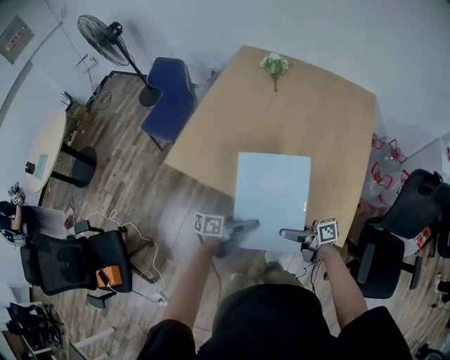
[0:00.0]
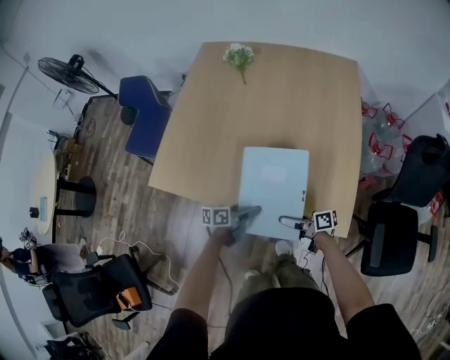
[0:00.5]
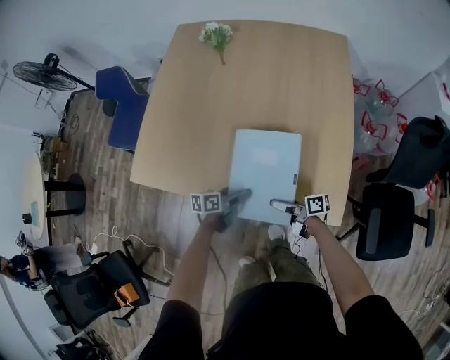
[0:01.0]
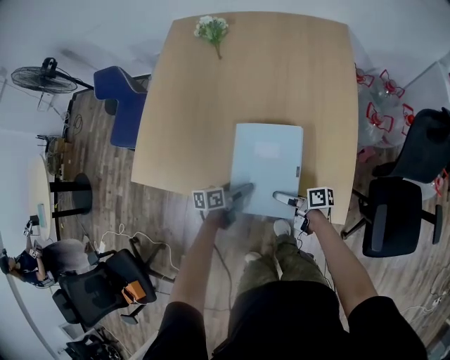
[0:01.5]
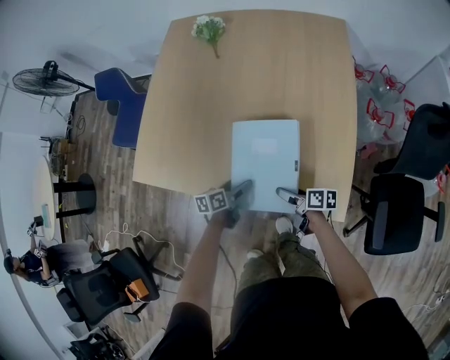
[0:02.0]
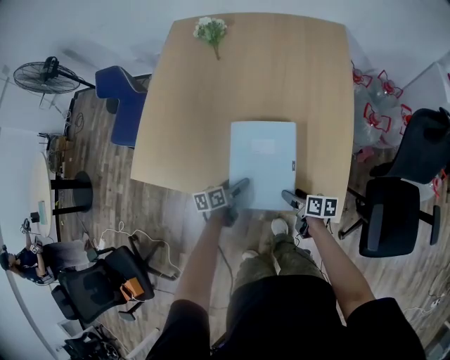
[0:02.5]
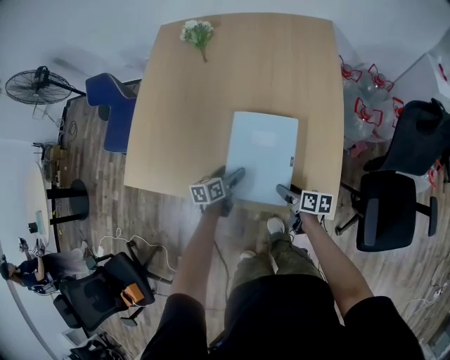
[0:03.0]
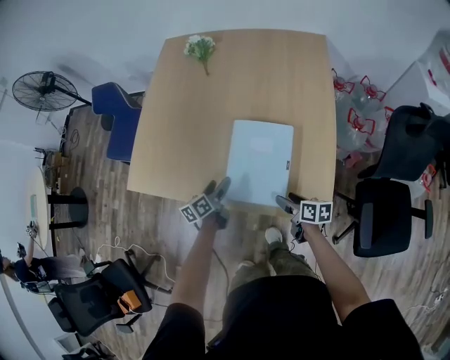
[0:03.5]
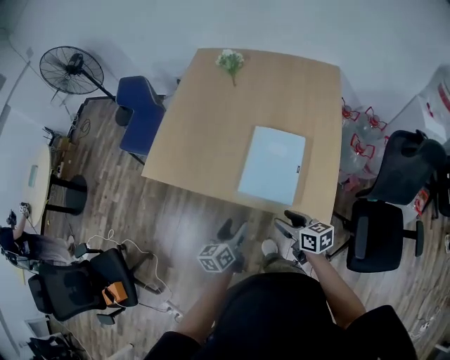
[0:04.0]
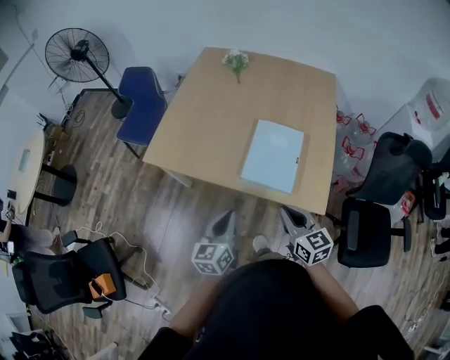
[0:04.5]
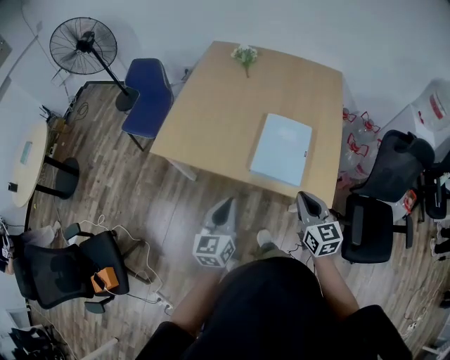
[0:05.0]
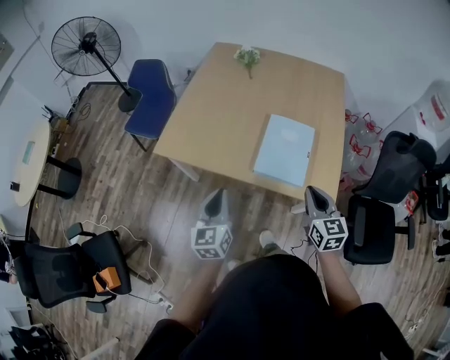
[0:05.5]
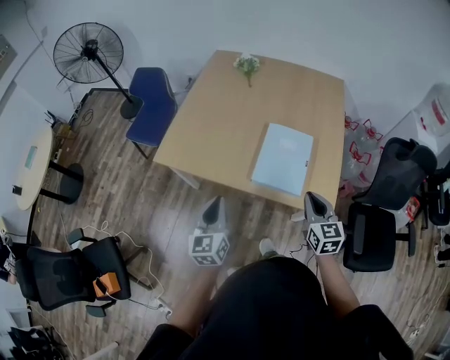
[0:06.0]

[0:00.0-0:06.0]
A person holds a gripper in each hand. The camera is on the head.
0:00.0 to 0:02.0: The right gripper shifts by approximately 30 cm, and swivels about 40 degrees; the left gripper ends up about 30 cm from where it was, and rotates approximately 20 degrees.
0:02.0 to 0:04.0: The right gripper heads upward and backward, covering approximately 25 cm, swivels approximately 40 degrees, and closes its fingers. The left gripper moves backward and upward, about 25 cm, and swivels some 30 degrees.
0:04.0 to 0:06.0: The right gripper is displaced upward by some 15 cm, swivels approximately 40 degrees, and closes up. Meanwhile the left gripper shifts roughly 20 cm upward and to the left, turns by roughly 30 degrees, and closes its fingers.

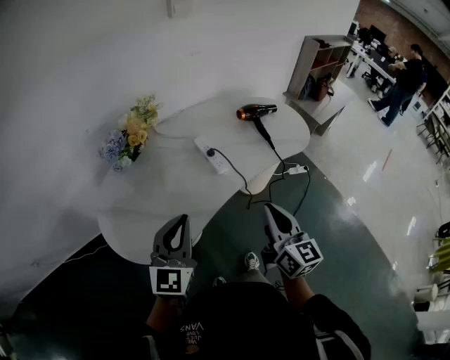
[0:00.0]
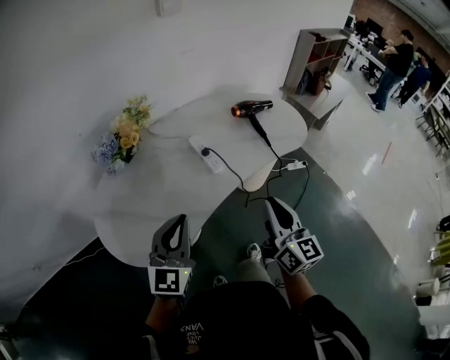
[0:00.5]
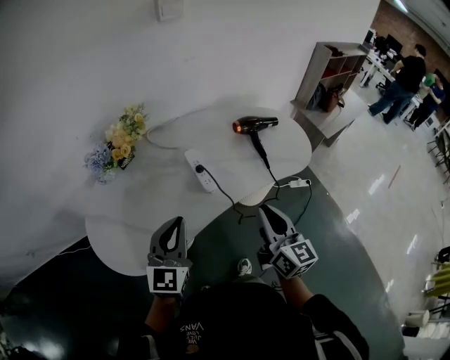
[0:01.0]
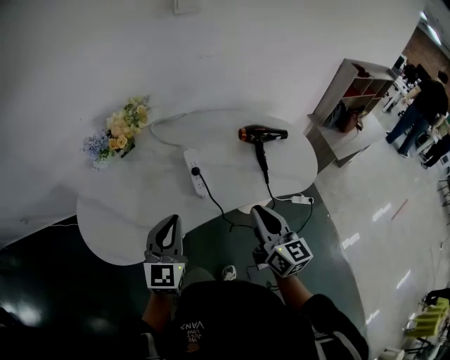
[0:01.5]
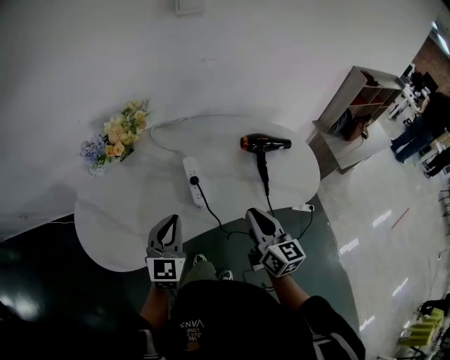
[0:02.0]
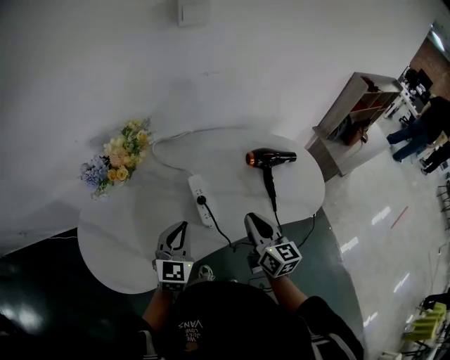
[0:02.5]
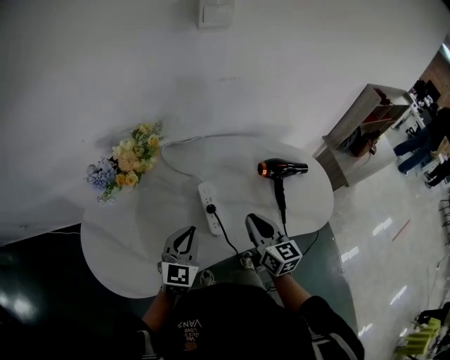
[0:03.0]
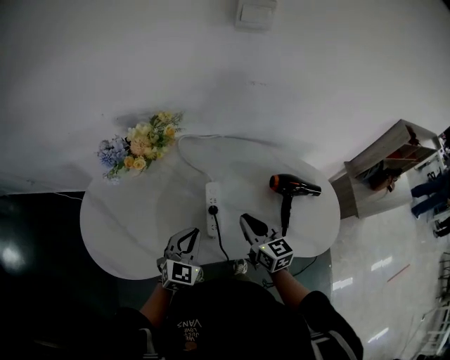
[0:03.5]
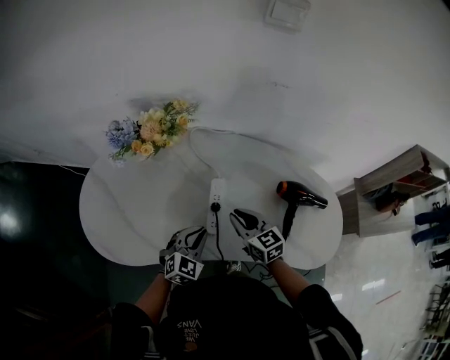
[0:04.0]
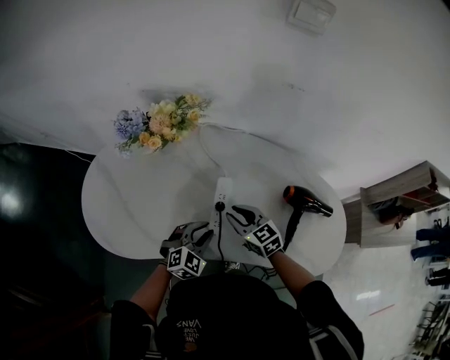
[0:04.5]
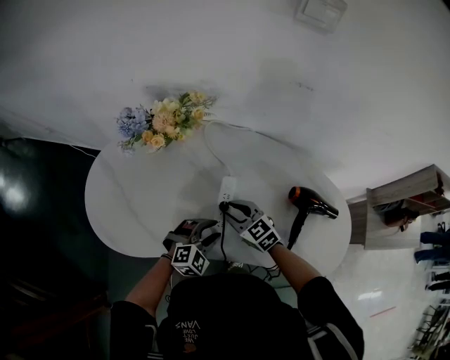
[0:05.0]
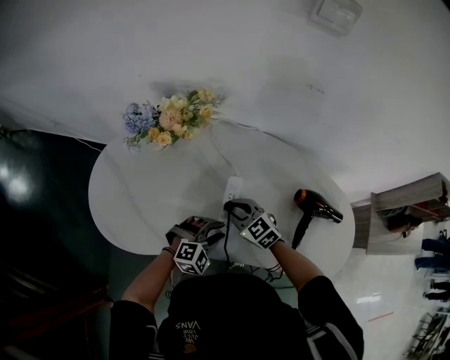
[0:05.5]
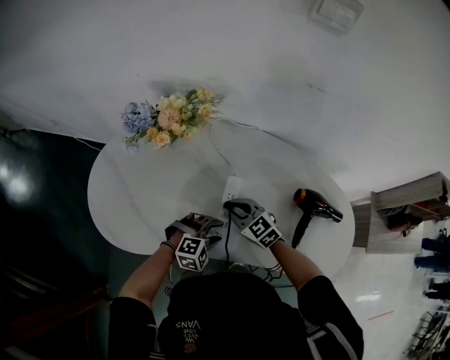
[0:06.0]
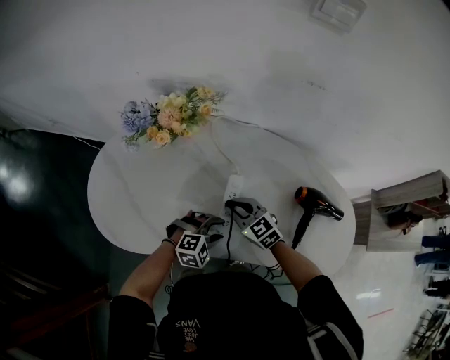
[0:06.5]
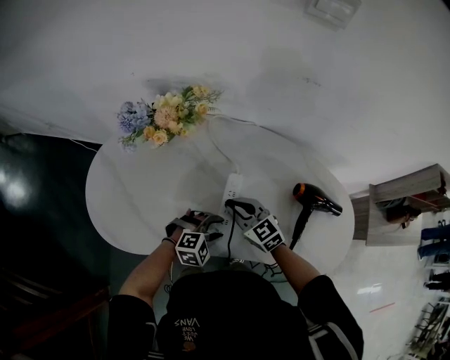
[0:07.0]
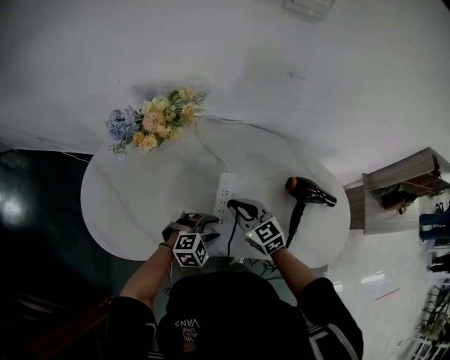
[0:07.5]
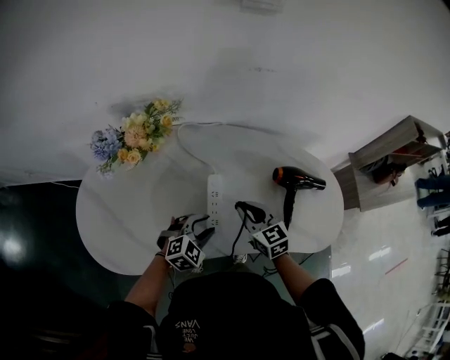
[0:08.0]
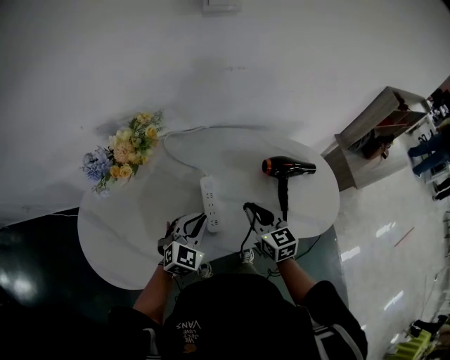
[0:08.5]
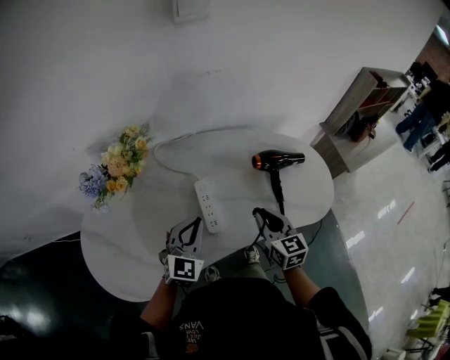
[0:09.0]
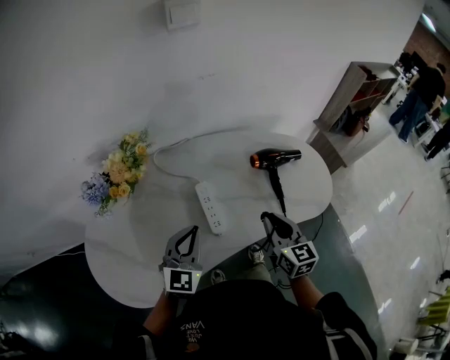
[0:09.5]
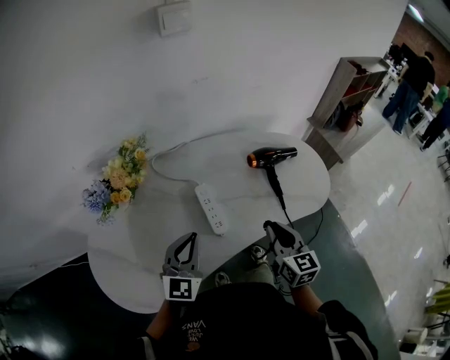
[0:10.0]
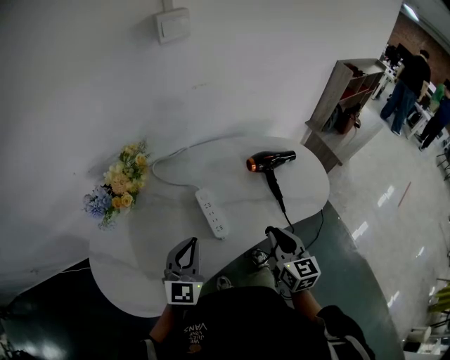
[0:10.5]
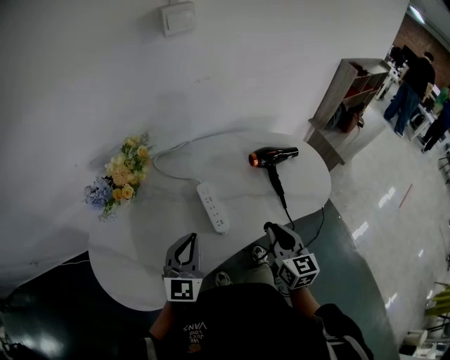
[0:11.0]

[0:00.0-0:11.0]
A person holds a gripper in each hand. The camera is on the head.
0:00.0 to 0:02.0: The left gripper heads forward, to the right and downward, covering approximately 25 cm, and changes its angle by approximately 20 degrees. The right gripper travels forward and to the right by about 25 cm, and rotates some 20 degrees.
0:02.0 to 0:03.5: The two grippers go approximately 15 cm forward and downward. The right gripper swivels some 20 degrees.
0:03.5 to 0:05.5: The left gripper shifts approximately 10 cm downward and to the right, swivels about 40 degrees, and opens, while the right gripper travels to the left, downward and forward by some 15 cm, and rotates approximately 50 degrees.
0:05.5 to 0:07.5: The right gripper moves approximately 5 cm.
0:07.5 to 0:09.0: The left gripper is displaced upward by about 15 cm, tilts its fingers some 30 degrees upward, and closes up, while the right gripper is displaced to the right, backward and upward by roughly 15 cm, and swivels some 50 degrees.
0:09.0 to 0:11.0: The two grippers go about 5 cm backward.

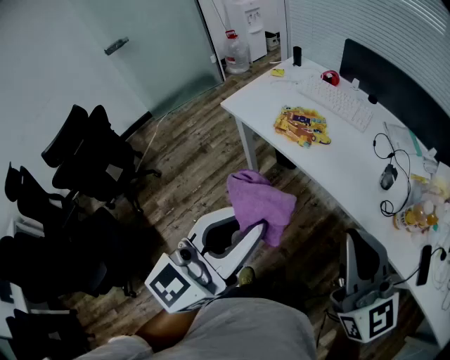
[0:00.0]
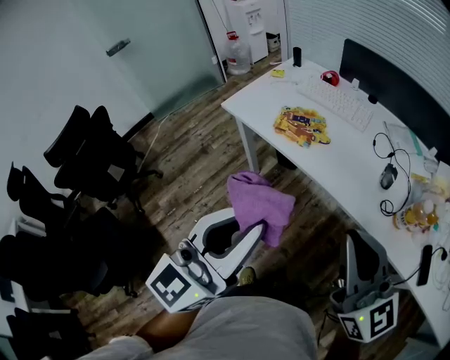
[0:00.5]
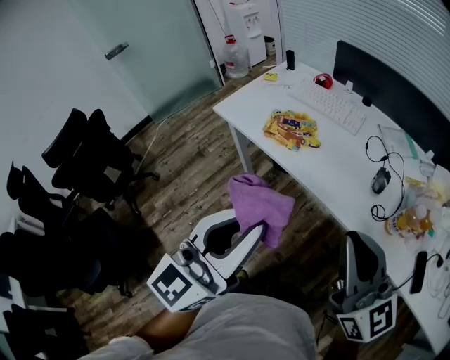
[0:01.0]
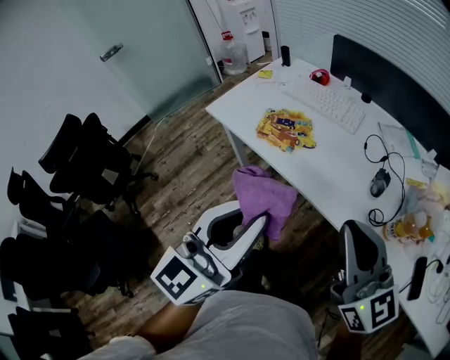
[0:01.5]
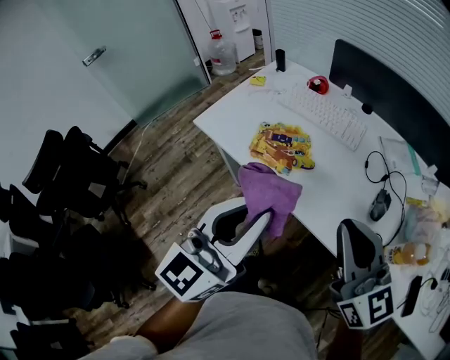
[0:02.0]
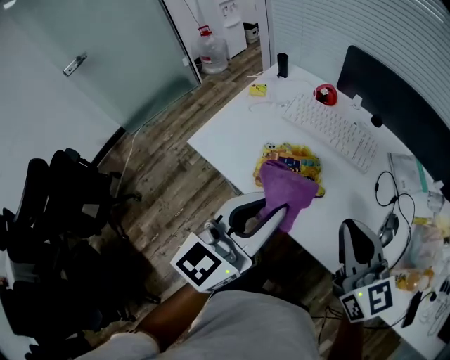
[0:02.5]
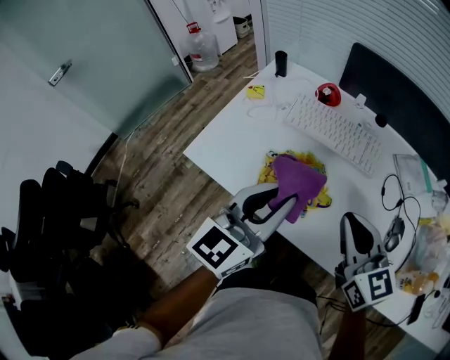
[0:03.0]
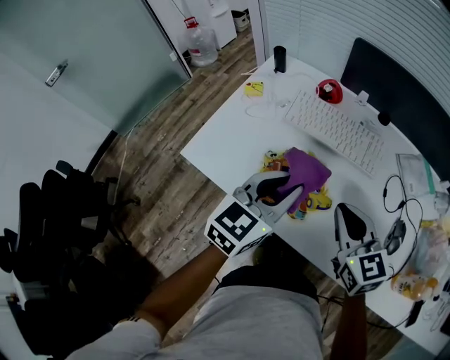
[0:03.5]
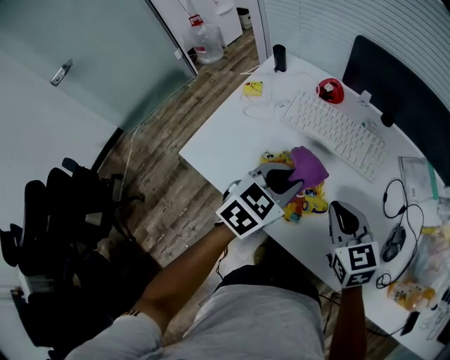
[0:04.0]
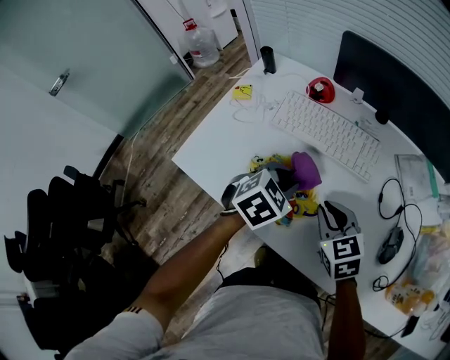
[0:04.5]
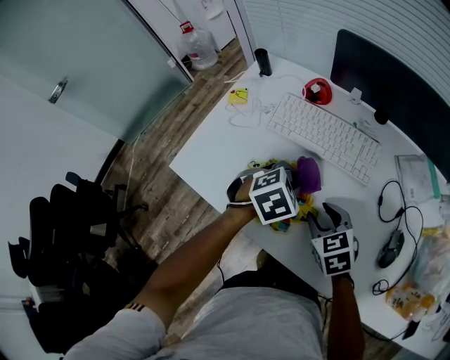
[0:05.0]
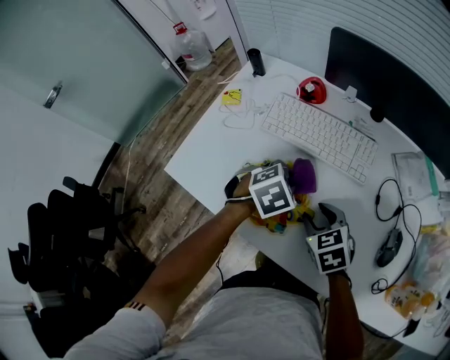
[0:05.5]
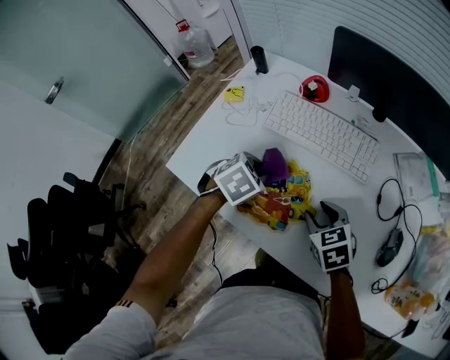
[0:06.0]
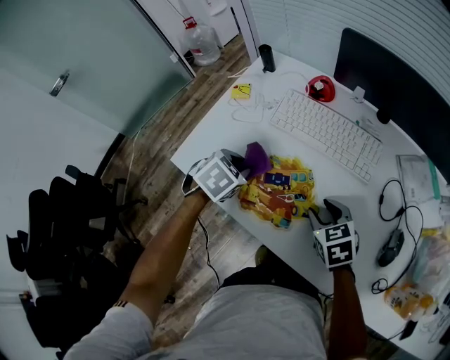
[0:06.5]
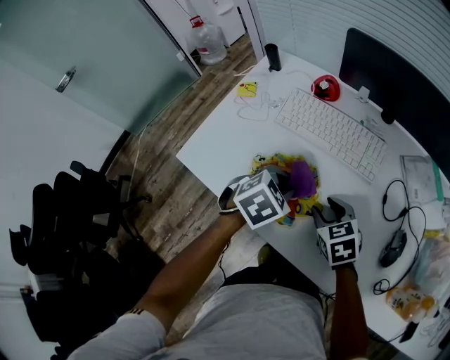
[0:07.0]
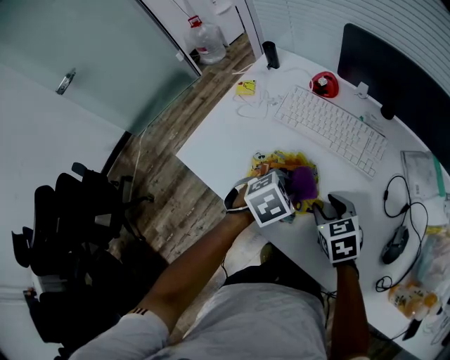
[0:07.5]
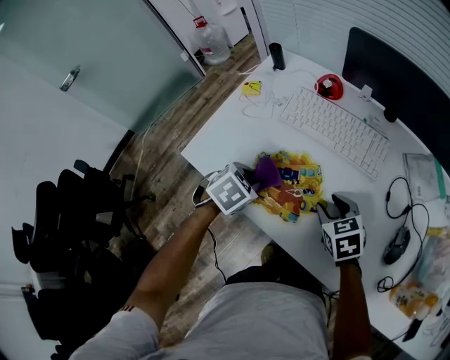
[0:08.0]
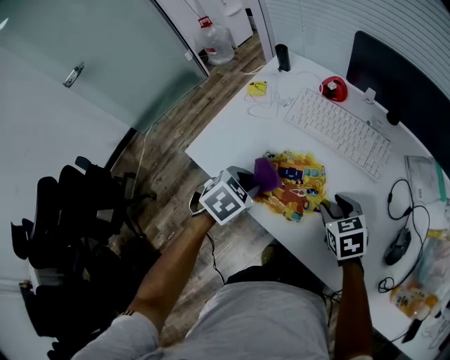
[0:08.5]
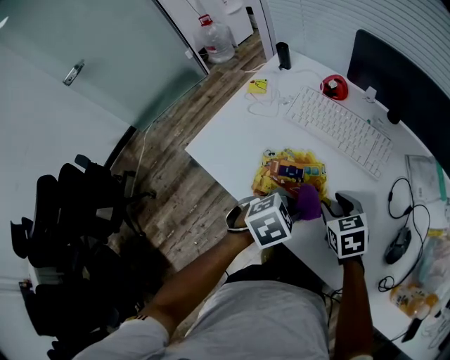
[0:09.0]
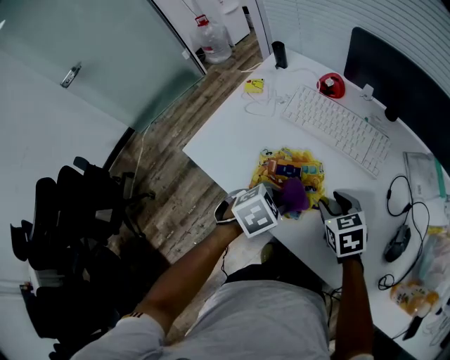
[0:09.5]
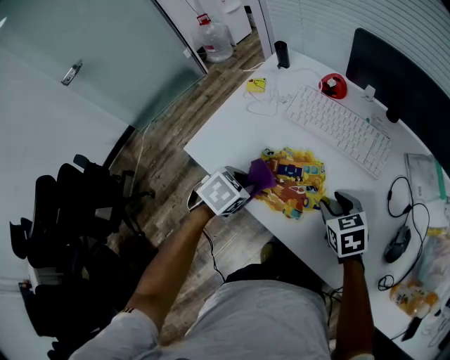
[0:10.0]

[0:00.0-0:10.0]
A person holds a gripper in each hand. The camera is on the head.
0:00.0 to 0:02.0: Both grippers travel together forward, approximately 15 cm.
0:02.0 to 0:04.0: The grippers both shift forward and downward by about 30 cm. The left gripper tilts its fingers some 40 degrees downward. Meanwhile the right gripper swivels roughly 30 degrees.
0:04.0 to 0:06.0: The left gripper heads downward and to the left, covering approximately 10 cm, and tips its fingers downward by approximately 30 degrees. The right gripper goes some 10 cm downward, changes its angle by approximately 20 degrees, and opens its fingers.
0:06.0 to 0:08.0: The left gripper moves left and right over approximately 15 cm, changing direction 2 times.
0:08.0 to 0:10.0: The left gripper travels to the right and back again, roughly 15 cm each way.
